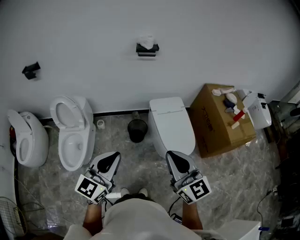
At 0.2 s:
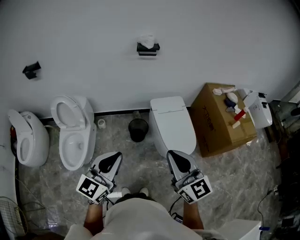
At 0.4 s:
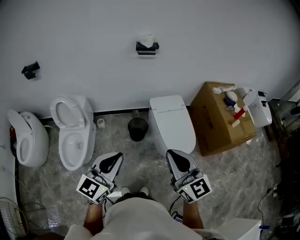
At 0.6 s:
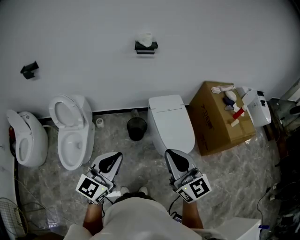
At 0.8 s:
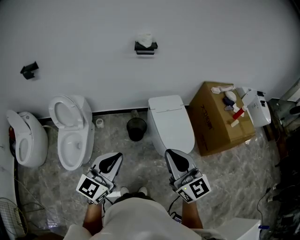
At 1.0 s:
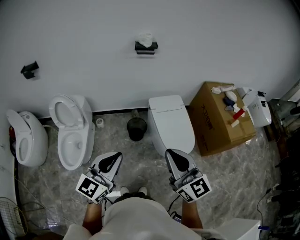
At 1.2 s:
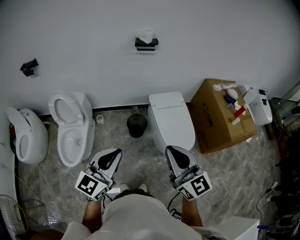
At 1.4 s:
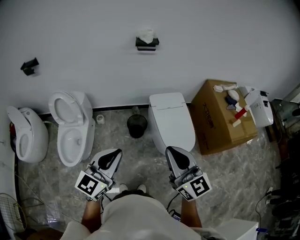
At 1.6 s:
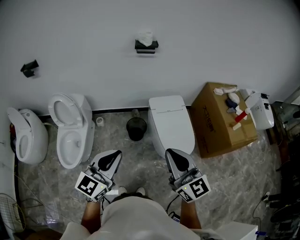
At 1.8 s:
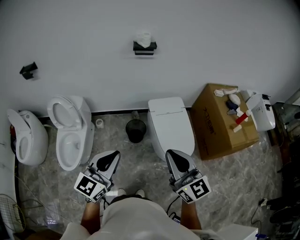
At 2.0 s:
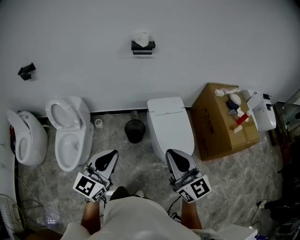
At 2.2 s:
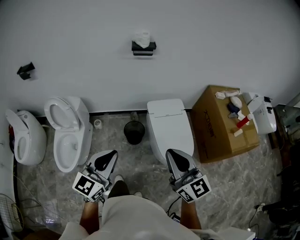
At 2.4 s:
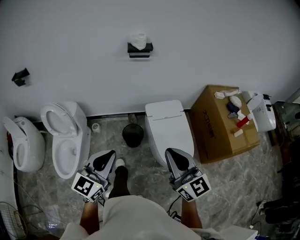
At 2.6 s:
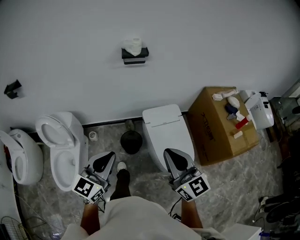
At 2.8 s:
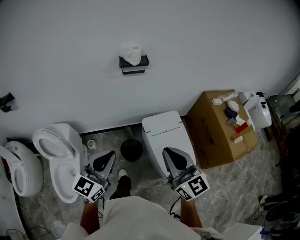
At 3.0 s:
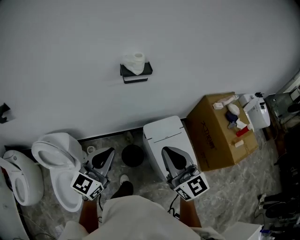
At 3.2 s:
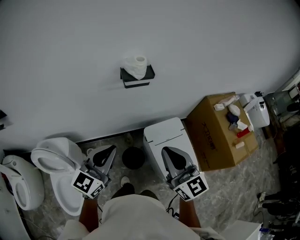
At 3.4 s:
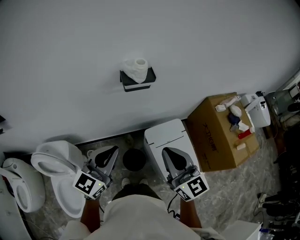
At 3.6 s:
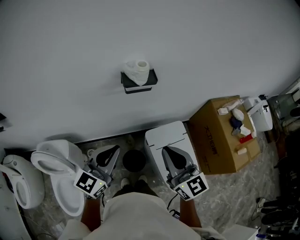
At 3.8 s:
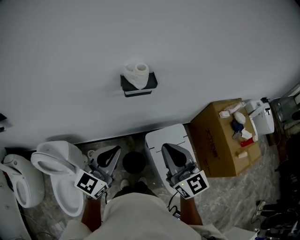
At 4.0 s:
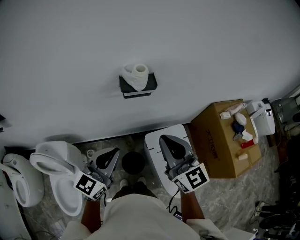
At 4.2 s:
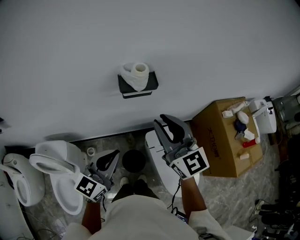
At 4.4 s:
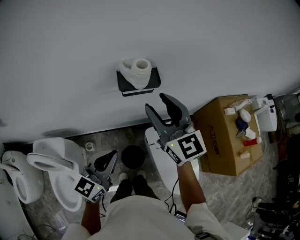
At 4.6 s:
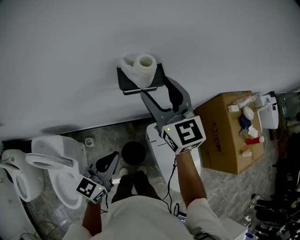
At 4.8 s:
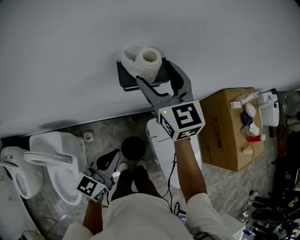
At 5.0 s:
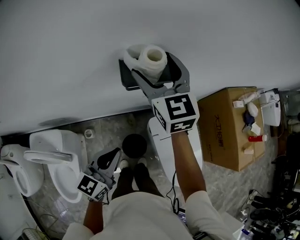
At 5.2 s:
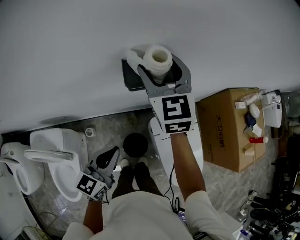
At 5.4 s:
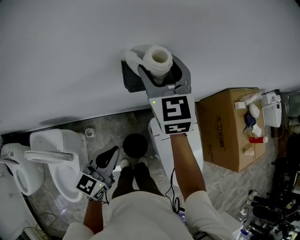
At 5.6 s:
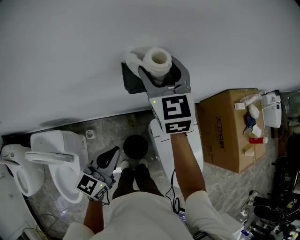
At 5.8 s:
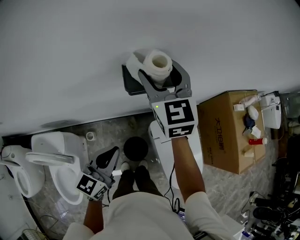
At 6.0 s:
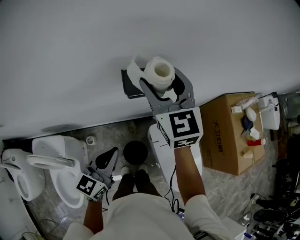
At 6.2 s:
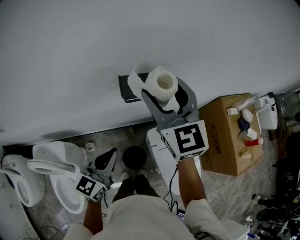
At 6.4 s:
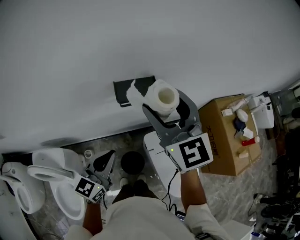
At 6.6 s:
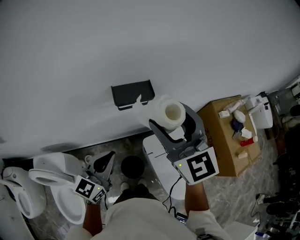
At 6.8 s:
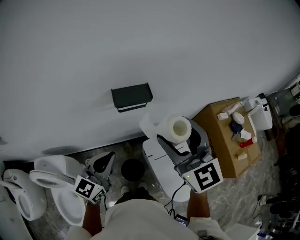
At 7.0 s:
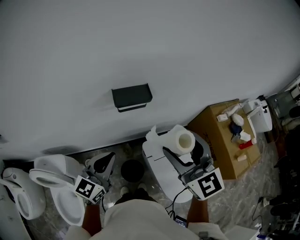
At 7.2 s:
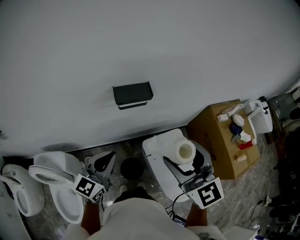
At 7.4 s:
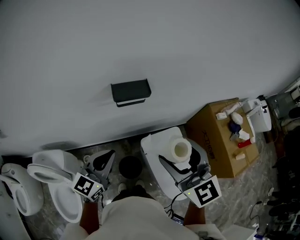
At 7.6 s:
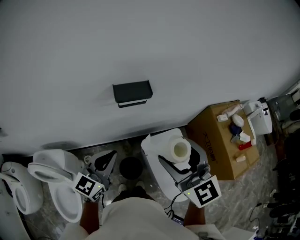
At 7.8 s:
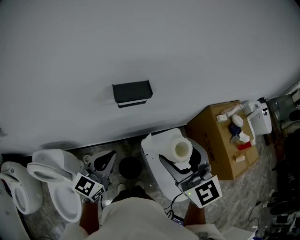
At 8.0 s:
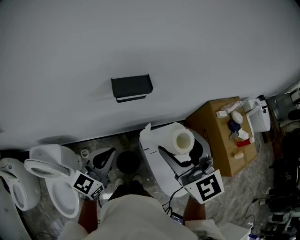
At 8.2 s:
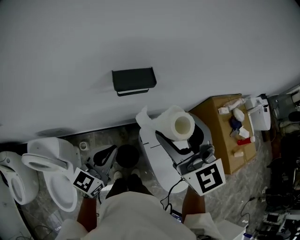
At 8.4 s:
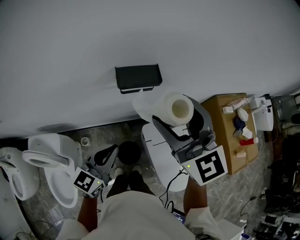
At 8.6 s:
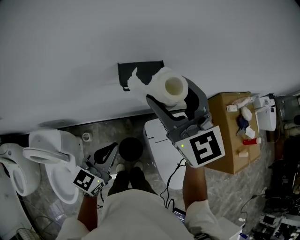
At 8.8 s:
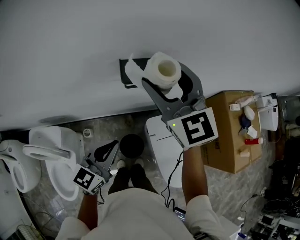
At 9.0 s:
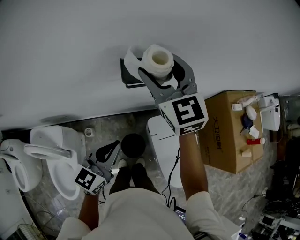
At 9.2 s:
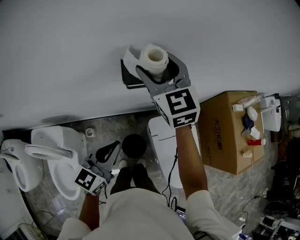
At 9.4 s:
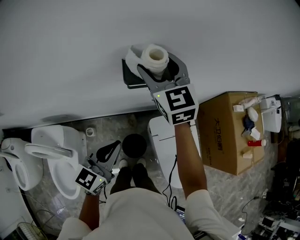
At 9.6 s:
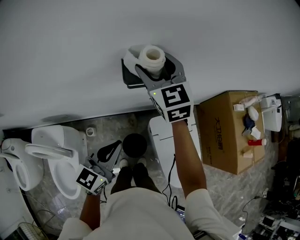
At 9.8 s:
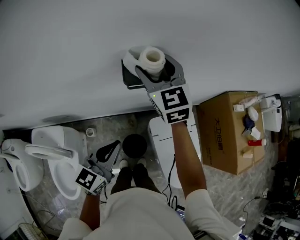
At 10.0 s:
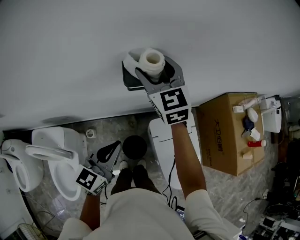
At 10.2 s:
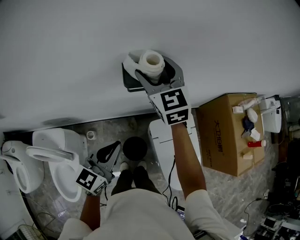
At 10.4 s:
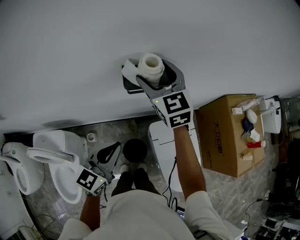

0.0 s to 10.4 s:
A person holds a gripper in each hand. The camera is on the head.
0.0 to 1.4 s: There are only small adjustments of the grippers.
1.4 to 3.0 s: The grippers both shift forward by roughly 40 cm.
3.0 to 4.4 s: The left gripper travels forward by roughly 20 cm, while the right gripper moves forward, about 35 cm, and opens.
4.4 to 6.0 s: The right gripper heads forward, covering approximately 10 cm. The left gripper goes roughly 5 cm forward.
6.0 to 7.4 s: The left gripper heads upward, covering about 5 cm, while the right gripper goes some 25 cm backward and to the right.
7.4 to 9.0 s: The left gripper travels downward by some 5 cm, while the right gripper heads forward and to the left, covering roughly 25 cm.
9.0 to 10.4 s: The right gripper ends up approximately 5 cm from where it was.

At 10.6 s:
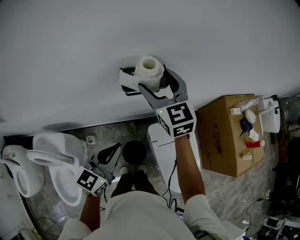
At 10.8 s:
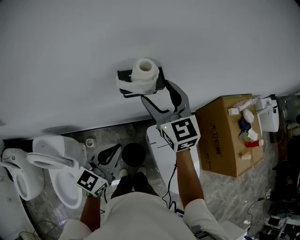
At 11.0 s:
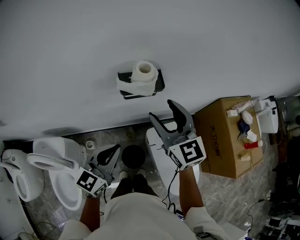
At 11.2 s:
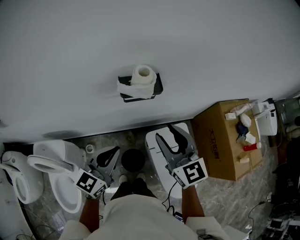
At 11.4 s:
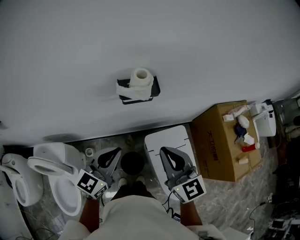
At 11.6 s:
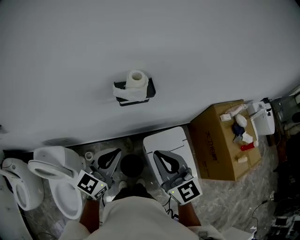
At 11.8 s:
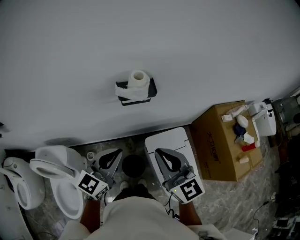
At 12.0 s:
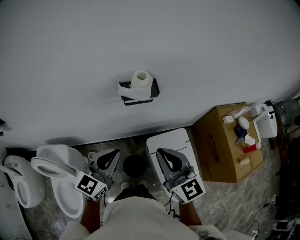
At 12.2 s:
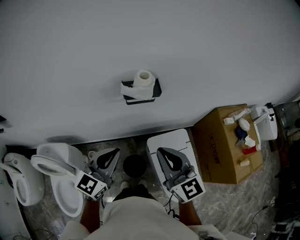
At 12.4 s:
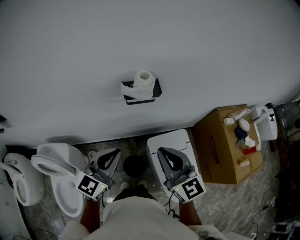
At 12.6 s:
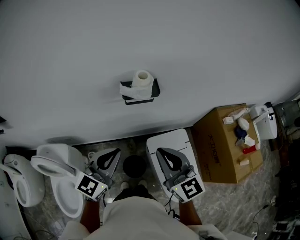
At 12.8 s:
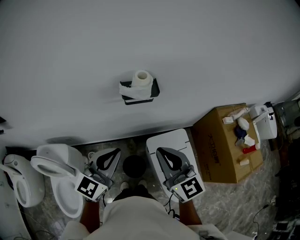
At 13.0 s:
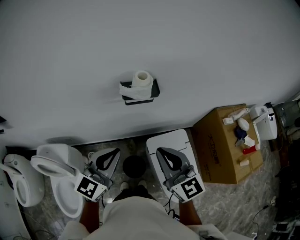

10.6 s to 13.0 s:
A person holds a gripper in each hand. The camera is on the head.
10.6 to 11.8 s: The right gripper goes about 25 cm backward, and closes up; the left gripper goes about 5 cm upward.
11.8 to 13.0 s: The grippers make only small movements.

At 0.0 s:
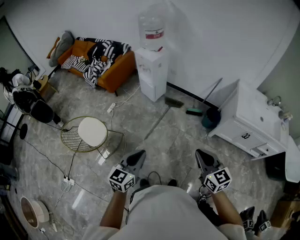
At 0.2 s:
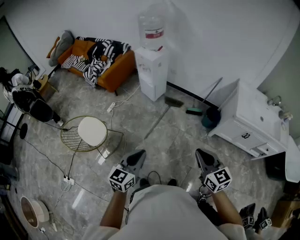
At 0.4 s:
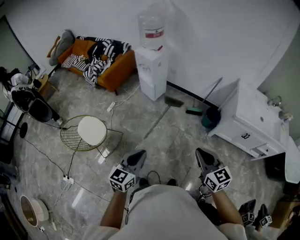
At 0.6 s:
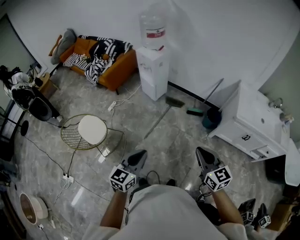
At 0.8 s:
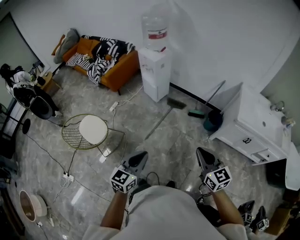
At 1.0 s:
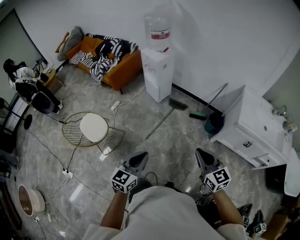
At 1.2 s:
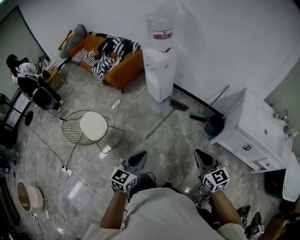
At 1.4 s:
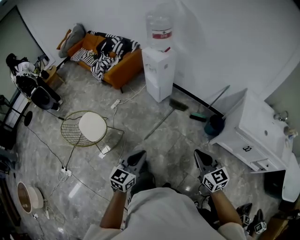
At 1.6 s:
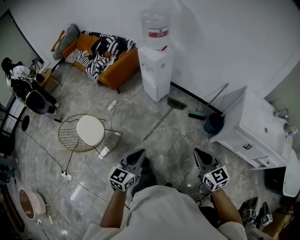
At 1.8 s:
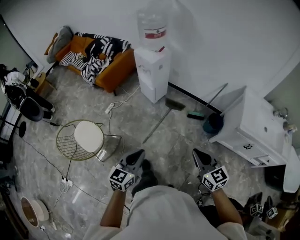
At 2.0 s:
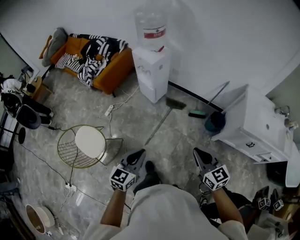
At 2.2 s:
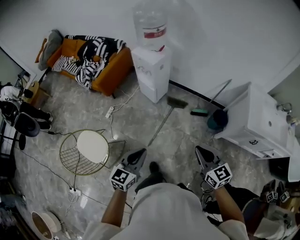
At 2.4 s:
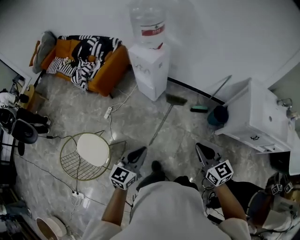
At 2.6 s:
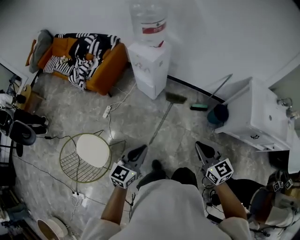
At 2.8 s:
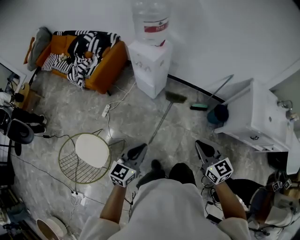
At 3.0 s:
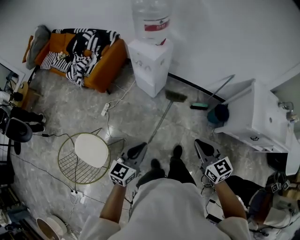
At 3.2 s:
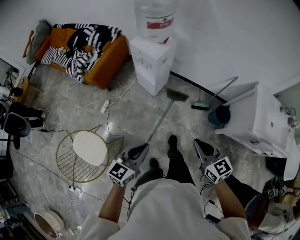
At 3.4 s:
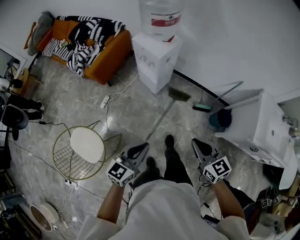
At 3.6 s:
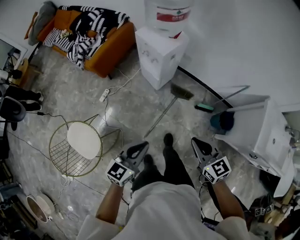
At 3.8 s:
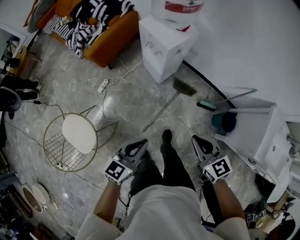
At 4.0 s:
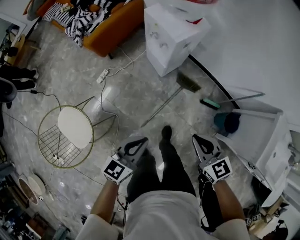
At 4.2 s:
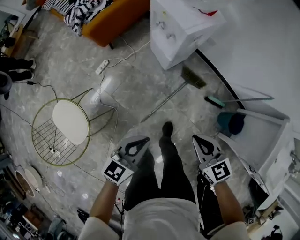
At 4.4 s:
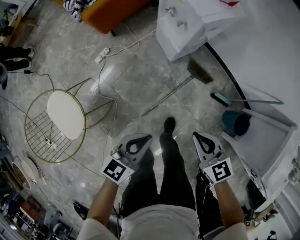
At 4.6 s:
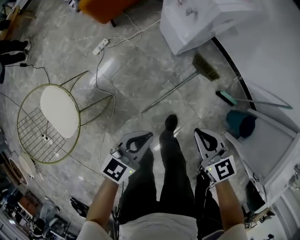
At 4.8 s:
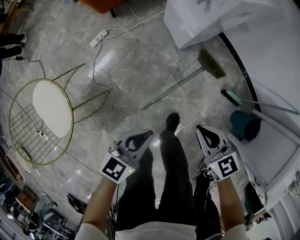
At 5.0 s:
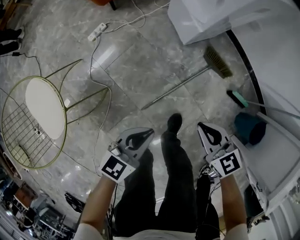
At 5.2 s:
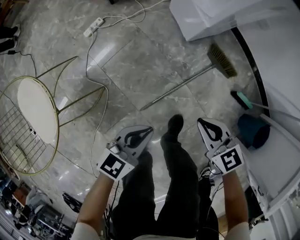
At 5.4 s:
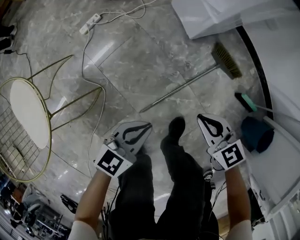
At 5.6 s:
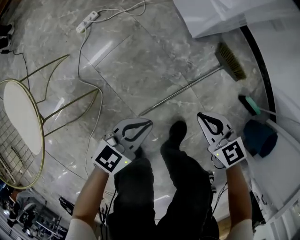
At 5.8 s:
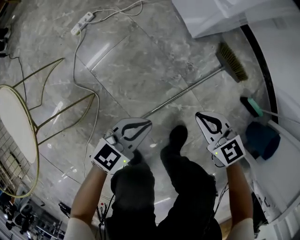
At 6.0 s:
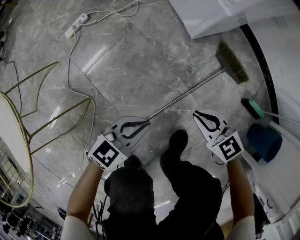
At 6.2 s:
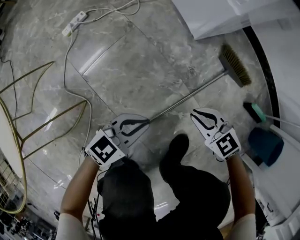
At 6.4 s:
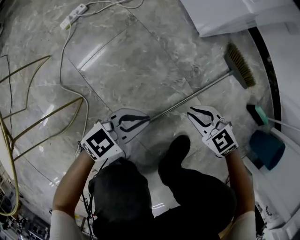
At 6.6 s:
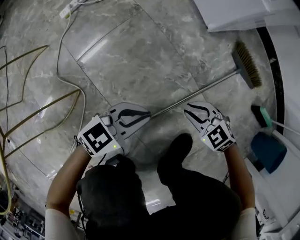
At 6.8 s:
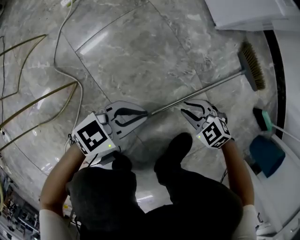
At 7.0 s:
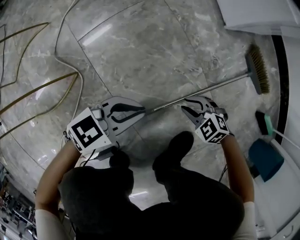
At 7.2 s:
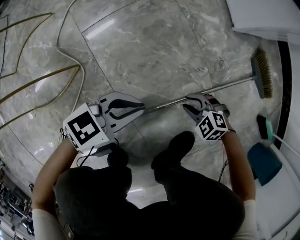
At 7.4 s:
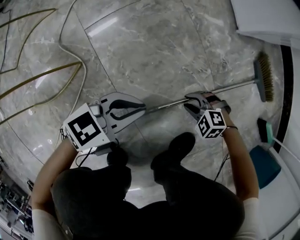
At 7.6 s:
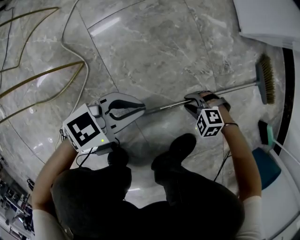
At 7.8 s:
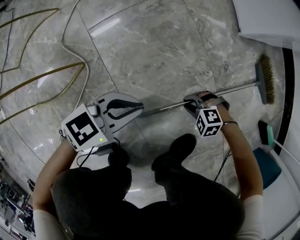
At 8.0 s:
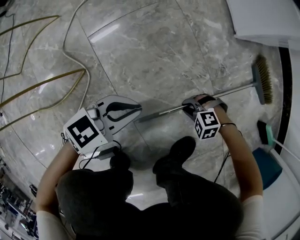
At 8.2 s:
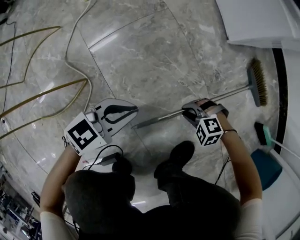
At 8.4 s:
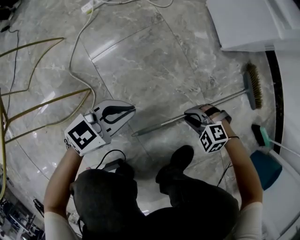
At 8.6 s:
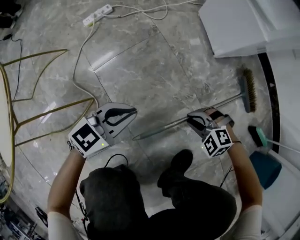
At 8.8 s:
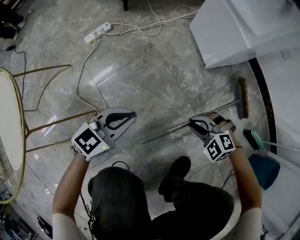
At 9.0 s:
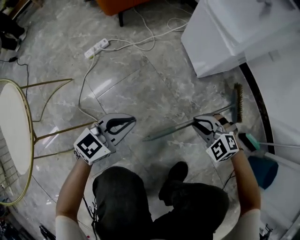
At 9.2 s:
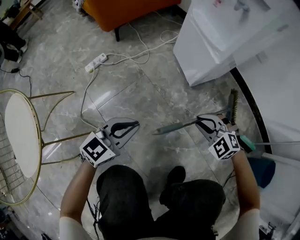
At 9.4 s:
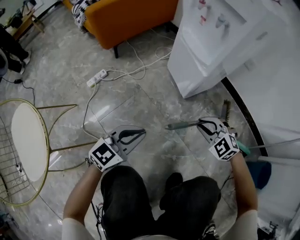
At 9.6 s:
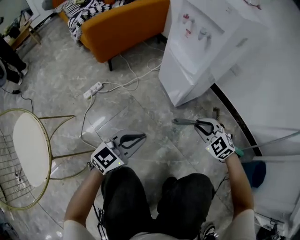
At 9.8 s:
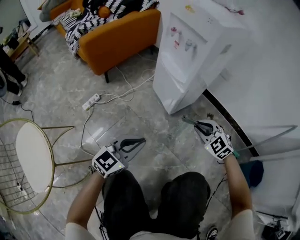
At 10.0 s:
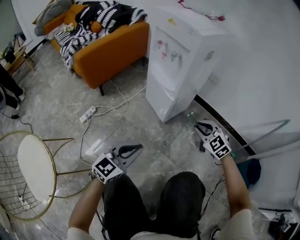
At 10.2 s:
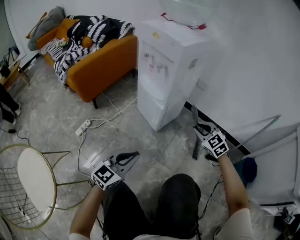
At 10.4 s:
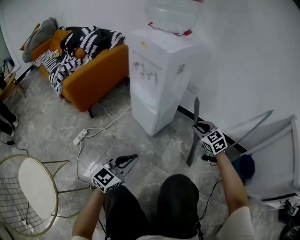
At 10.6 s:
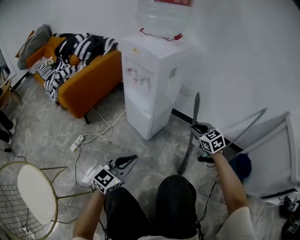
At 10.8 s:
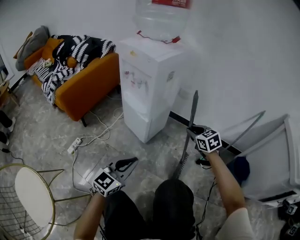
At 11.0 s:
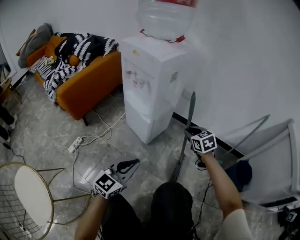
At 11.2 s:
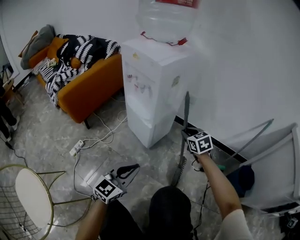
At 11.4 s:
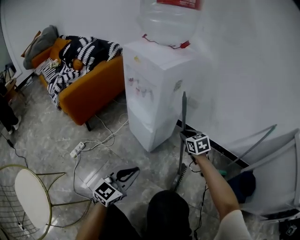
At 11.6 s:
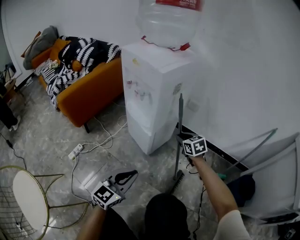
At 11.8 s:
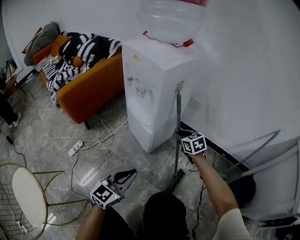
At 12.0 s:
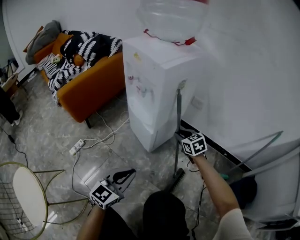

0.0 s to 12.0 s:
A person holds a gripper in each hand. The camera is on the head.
0.0 to 1.6 s: Both grippers move forward, about 10 cm.
1.6 to 3.0 s: The grippers both shift forward and to the left by approximately 30 cm.
3.0 to 4.4 s: Both grippers travel together downward and forward, some 35 cm. The right gripper rotates roughly 30 degrees.
4.4 to 6.0 s: The two grippers go roughly 50 cm downward. The right gripper changes its angle by about 20 degrees.
6.0 to 7.6 s: The left gripper is displaced downward by roughly 15 cm. The right gripper is displaced downward by about 35 cm, rotates roughly 70 degrees, and opens.
7.6 to 9.0 s: The left gripper heads upward, covering about 15 cm, and swivels approximately 20 degrees; the right gripper goes approximately 30 cm upward, and swivels approximately 30 degrees.
9.0 to 10.4 s: The grippers both shift upward by some 25 cm. The right gripper turns by some 60 degrees, while the left gripper swivels approximately 20 degrees.
10.4 to 12.0 s: The left gripper shifts about 10 cm forward. The right gripper heads forward, downward and to the left, covering roughly 15 cm.
